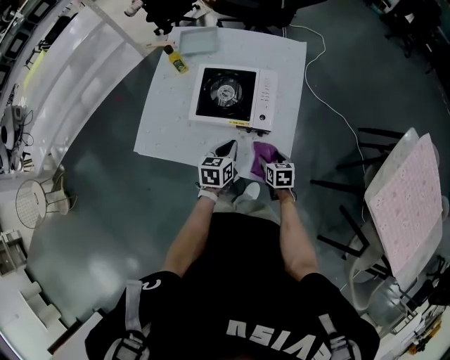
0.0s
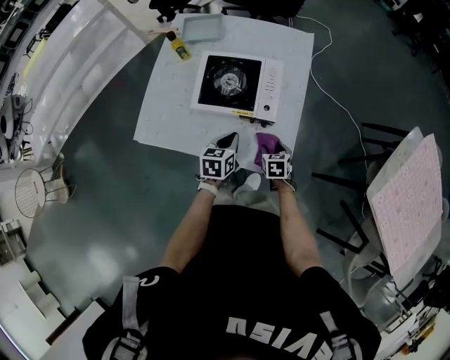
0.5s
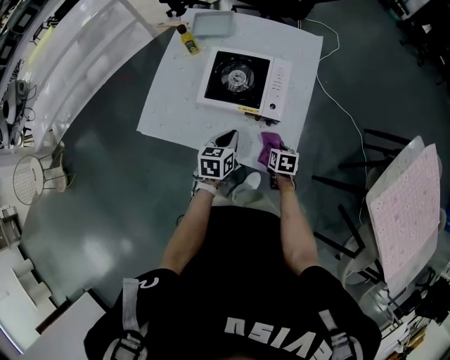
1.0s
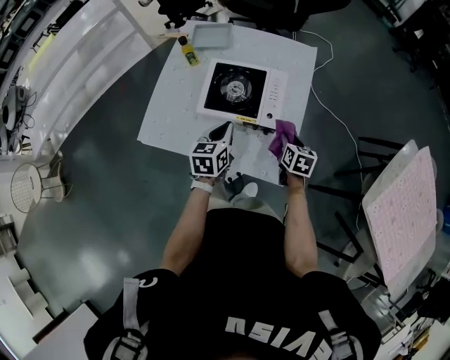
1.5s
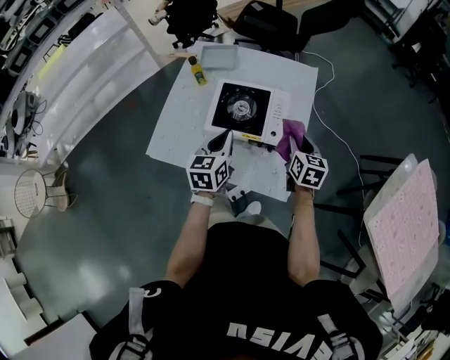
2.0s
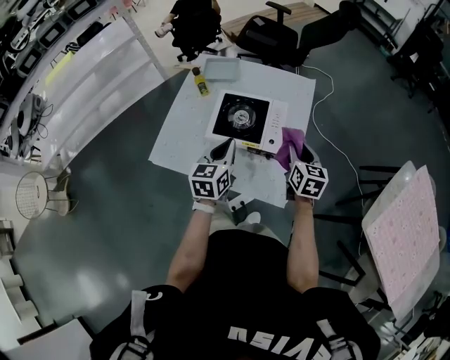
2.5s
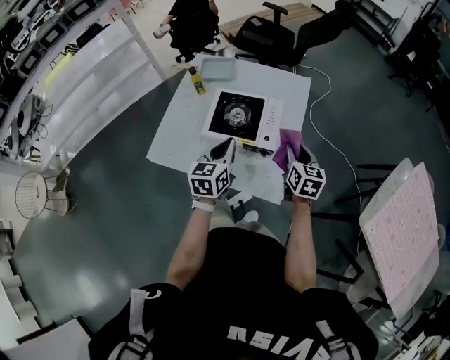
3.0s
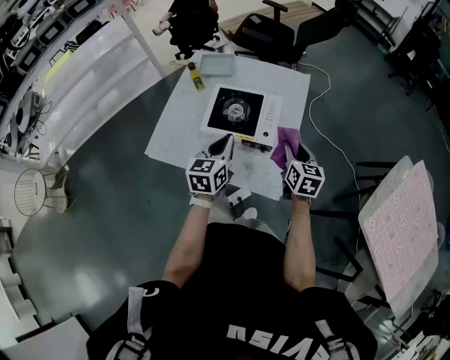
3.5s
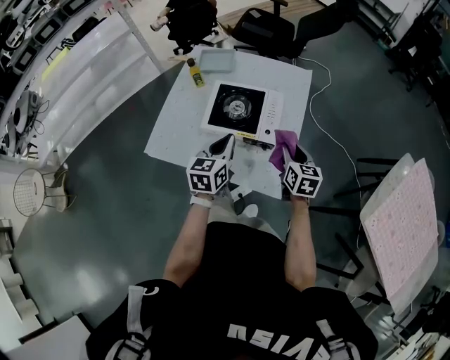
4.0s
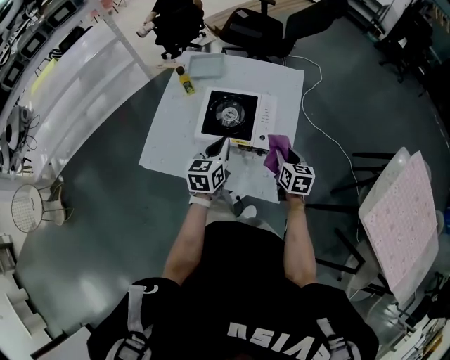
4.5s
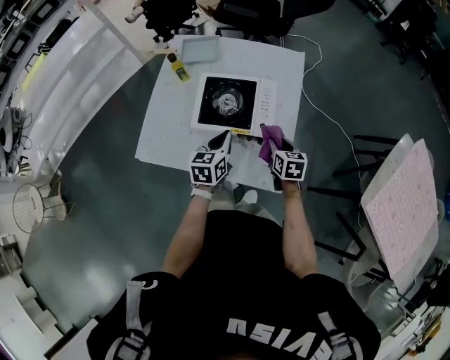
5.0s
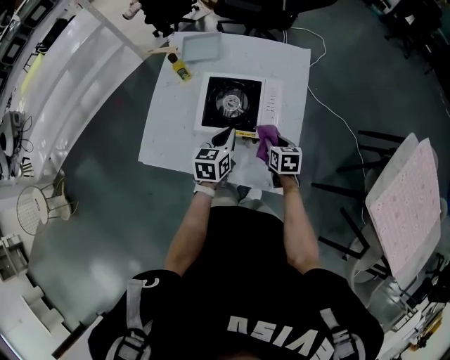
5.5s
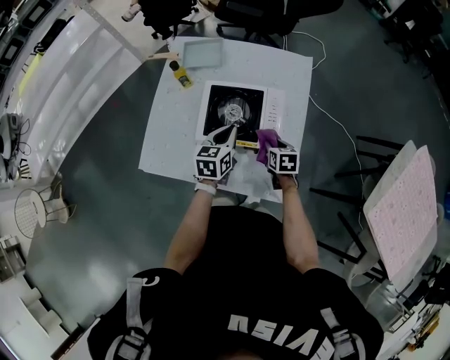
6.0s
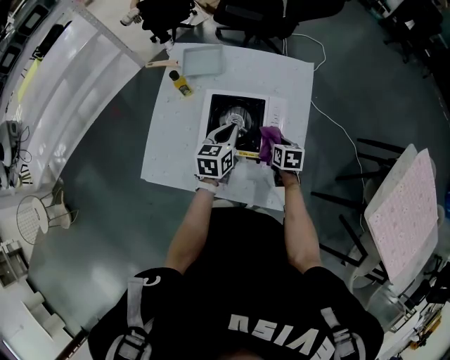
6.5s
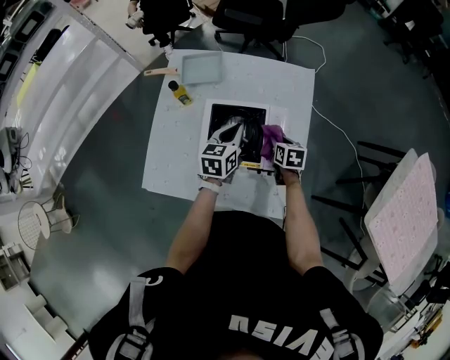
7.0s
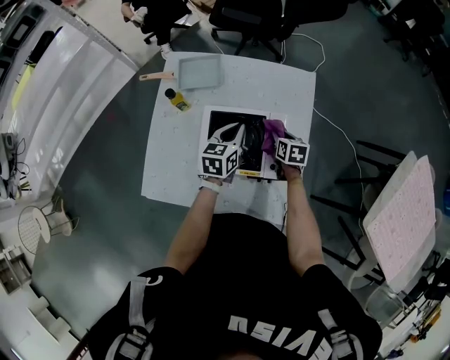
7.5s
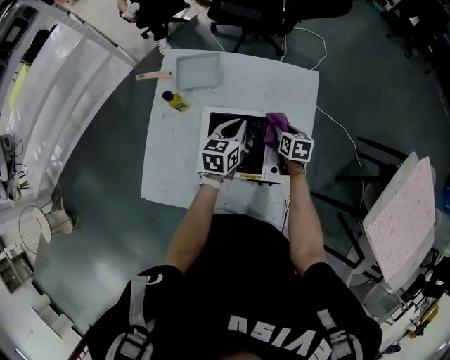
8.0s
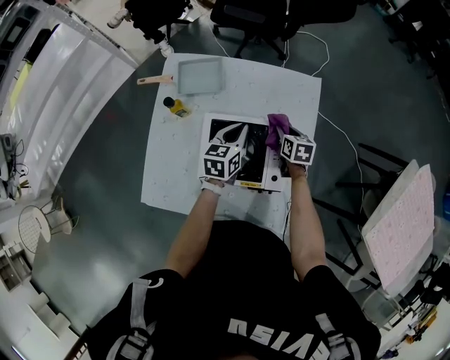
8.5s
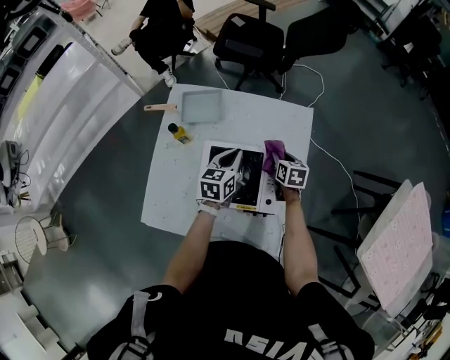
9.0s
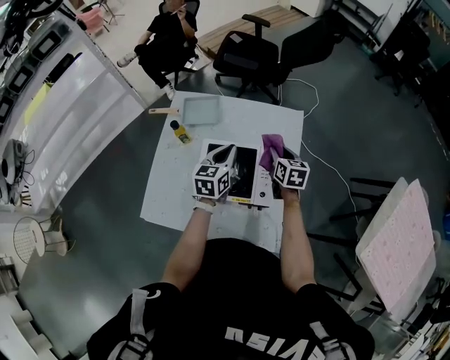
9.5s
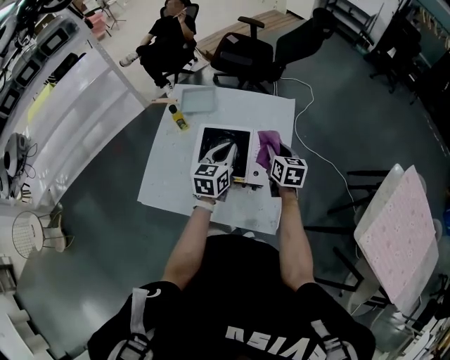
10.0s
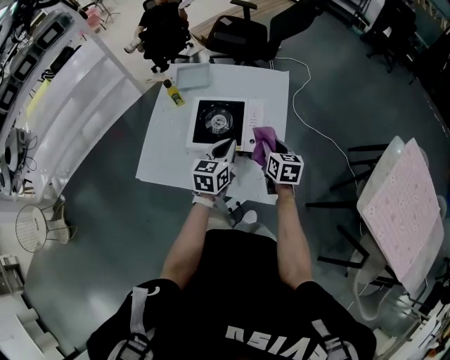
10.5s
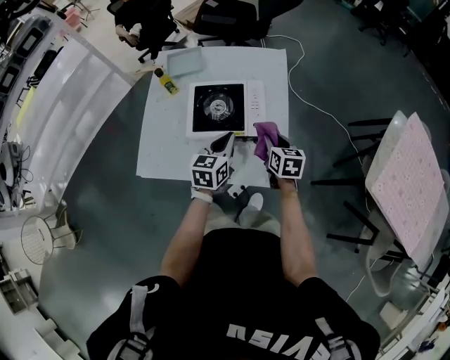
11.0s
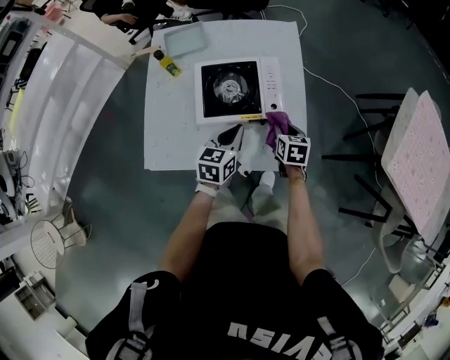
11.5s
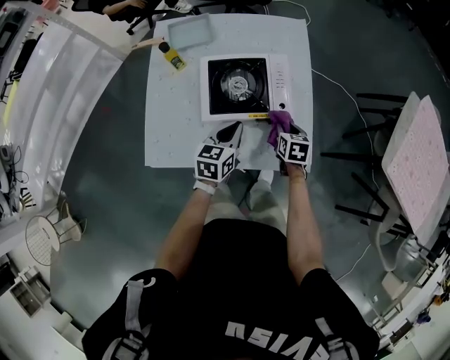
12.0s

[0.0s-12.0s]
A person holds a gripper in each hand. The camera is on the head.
0.0s to 2.0s: The right gripper goes some 25 cm upward and forward, changes its angle by some 20 degrees, and closes its fingers. Meanwhile the left gripper moves upward and to the left, about 15 cm.
2.0s to 4.0s: The grippers make only small movements.
4.0s to 6.0s: The left gripper moves forward and downward, roughly 15 cm. Meanwhile the right gripper moves downward, forward and to the left, approximately 20 cm, and swivels approximately 20 degrees.
6.0s to 8.0s: The two grippers go roughly 15 cm forward.
8.0s to 10.0s: The right gripper shifts roughly 20 cm upward and backward, and changes its angle by about 20 degrees. The left gripper heads backward and upward, covering some 15 cm.
10.0s to 12.0s: The two grippers go some 20 cm downward and backward. The right gripper changes its angle by approximately 30 degrees.

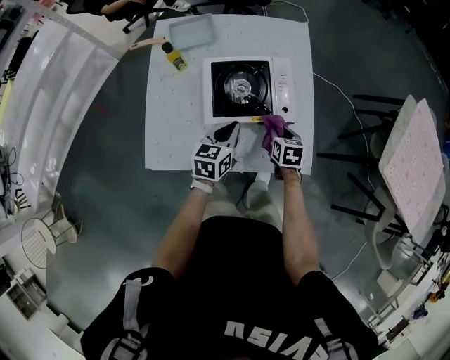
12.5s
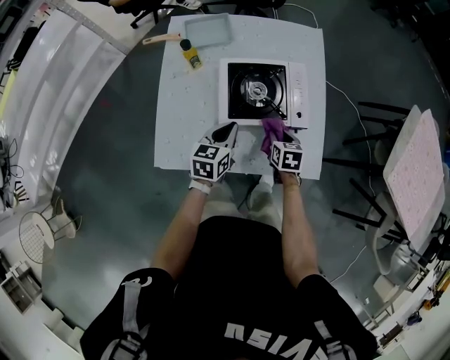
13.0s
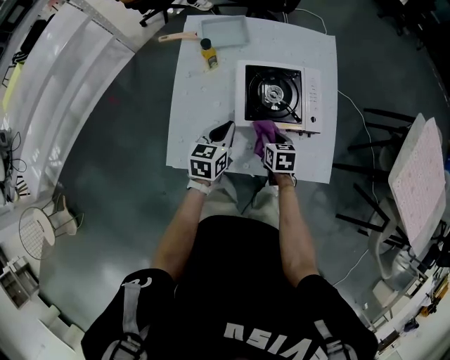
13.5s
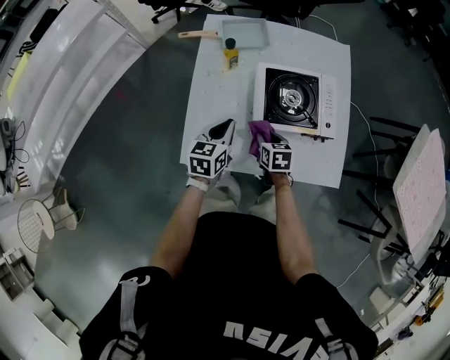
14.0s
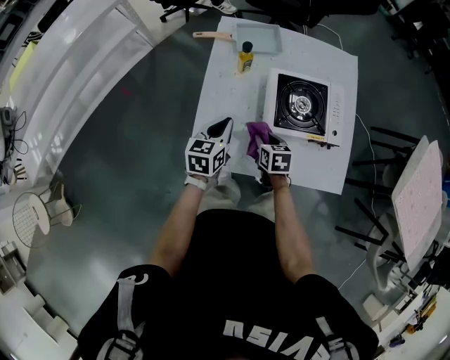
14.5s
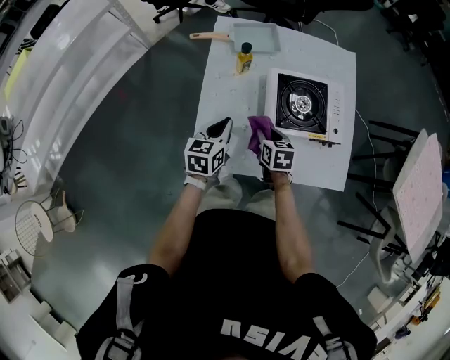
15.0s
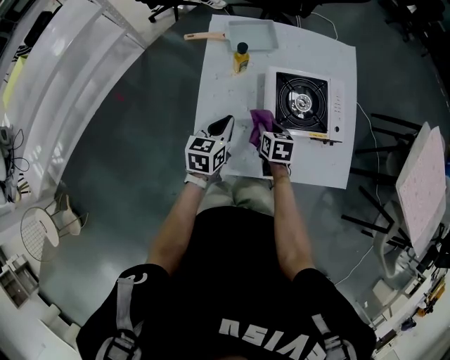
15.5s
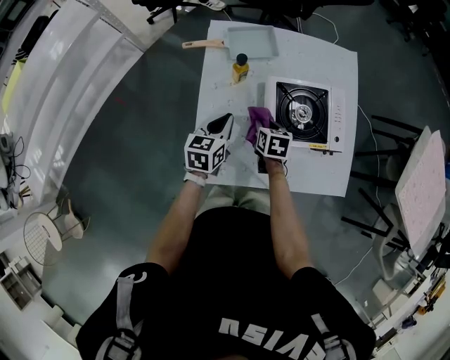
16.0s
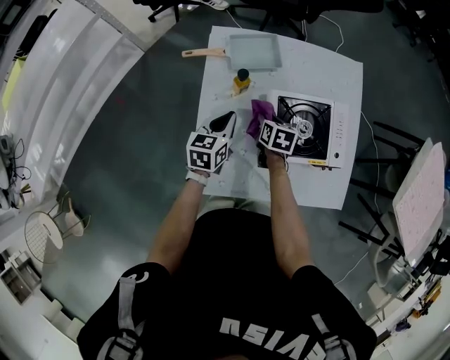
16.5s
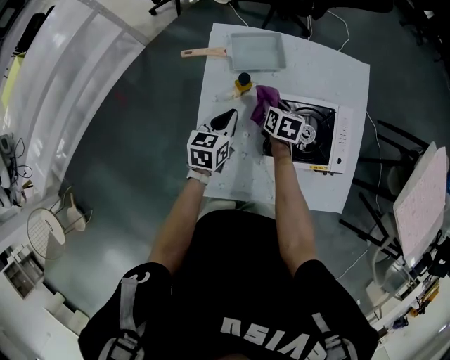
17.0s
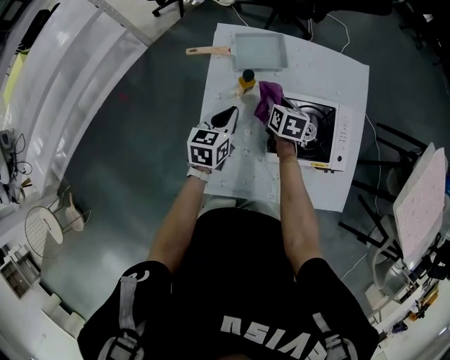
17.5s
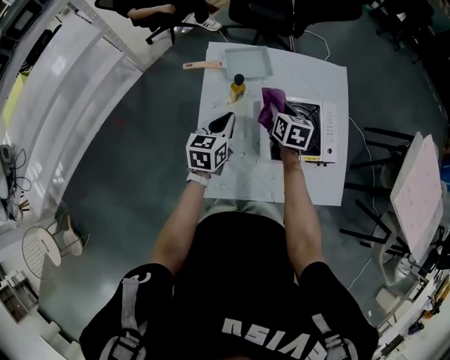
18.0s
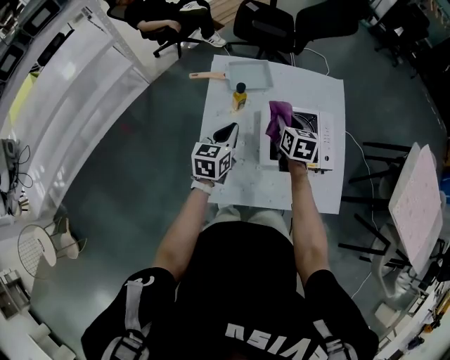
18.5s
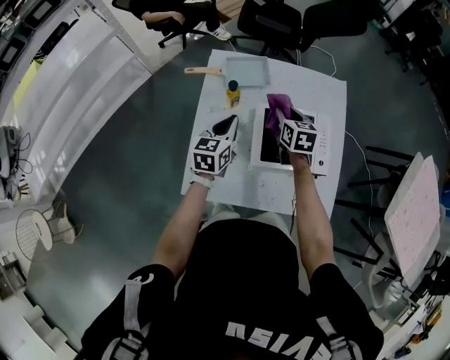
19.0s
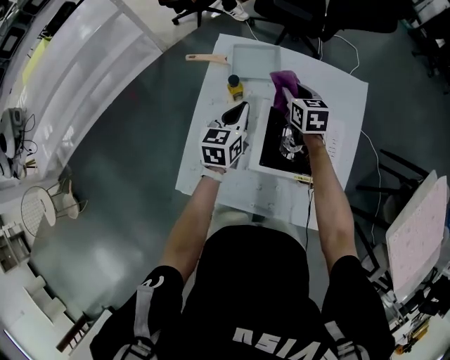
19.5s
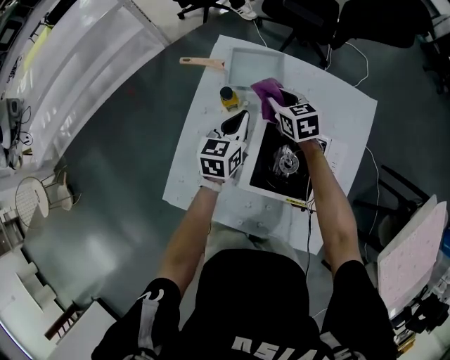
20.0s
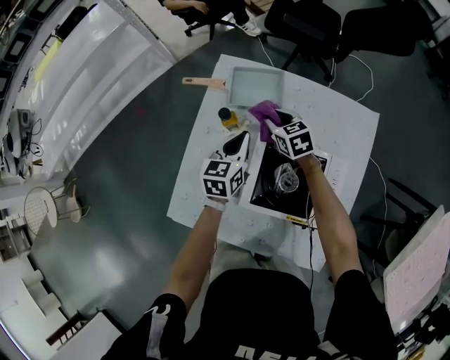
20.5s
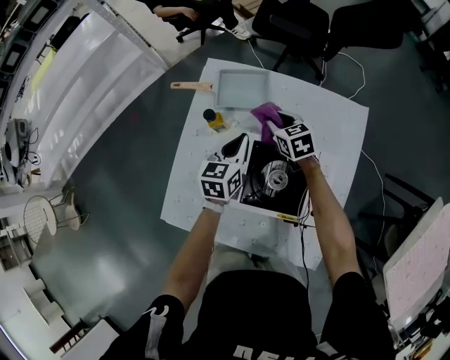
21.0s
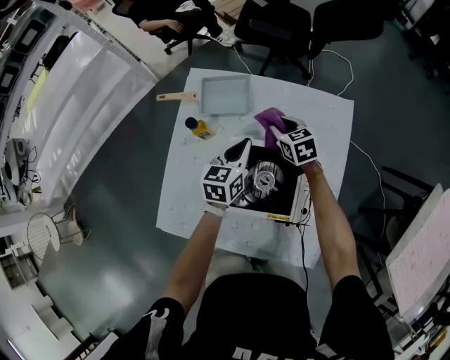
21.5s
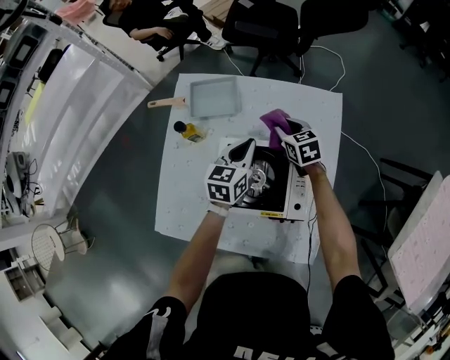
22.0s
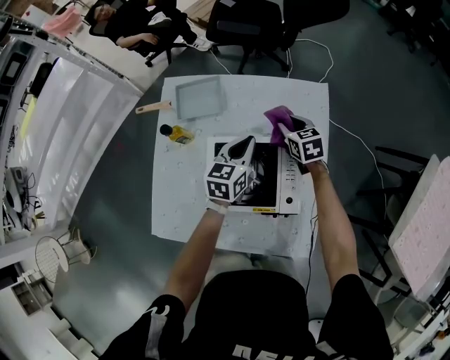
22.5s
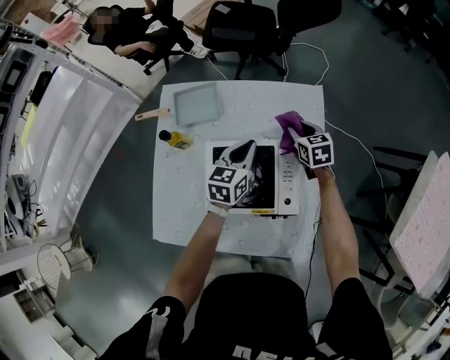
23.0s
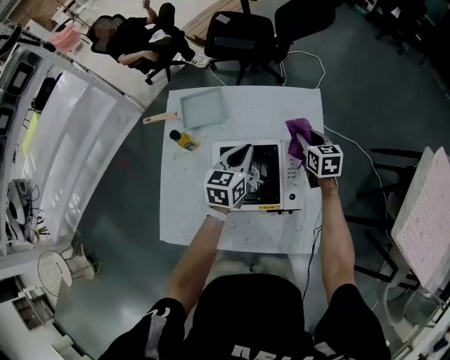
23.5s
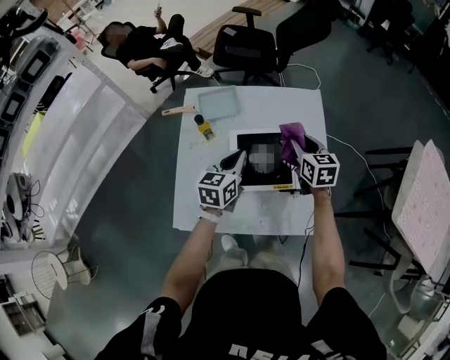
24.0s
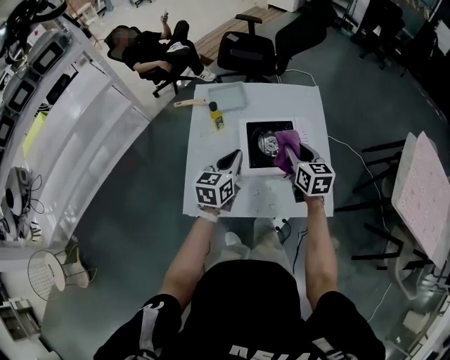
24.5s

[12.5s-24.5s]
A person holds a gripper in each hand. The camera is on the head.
12.5s to 14.5s: Both grippers travel together to the left, about 25 cm.
14.5s to 16.5s: Both grippers move forward, roughly 15 cm.
16.5s to 18.5s: The right gripper is displaced upward by some 15 cm, and swivels some 20 degrees. The left gripper heads upward, covering about 10 cm.
18.5s to 20.5s: The left gripper moves some 20 cm. The right gripper changes place by some 20 cm, and rotates roughly 40 degrees.
20.5s to 22.5s: Both grippers travel together to the right, approximately 20 cm. The right gripper changes its angle by some 20 degrees.
22.5s to 24.5s: The left gripper goes approximately 30 cm backward, to the left and upward, while the right gripper goes approximately 35 cm backward and upward, and rotates roughly 20 degrees.

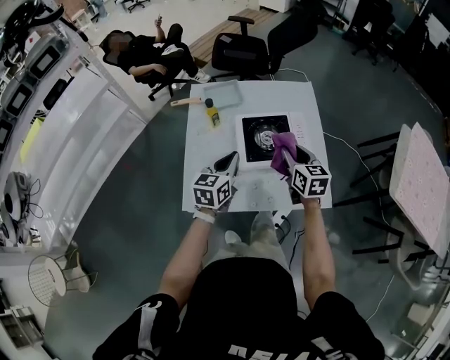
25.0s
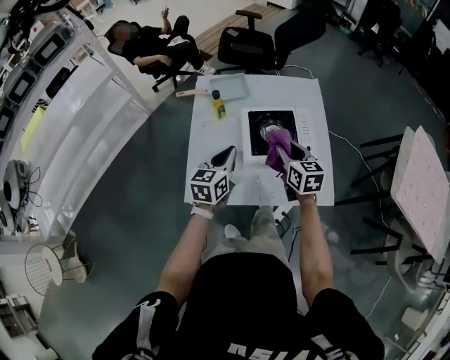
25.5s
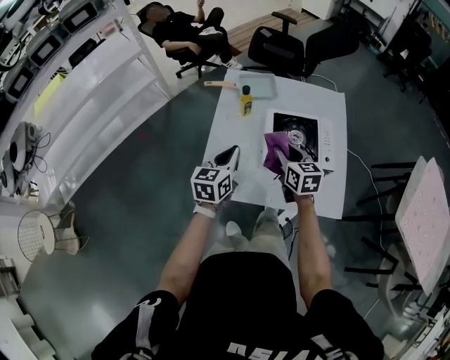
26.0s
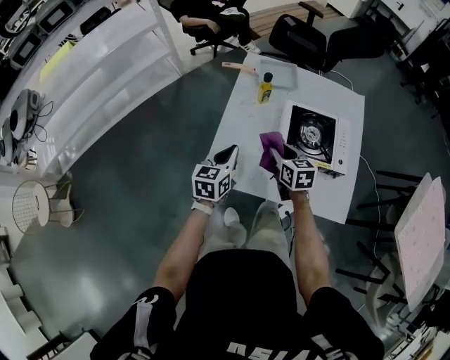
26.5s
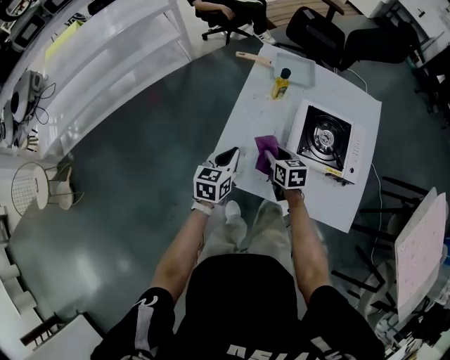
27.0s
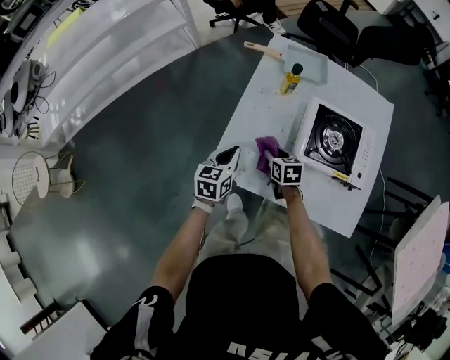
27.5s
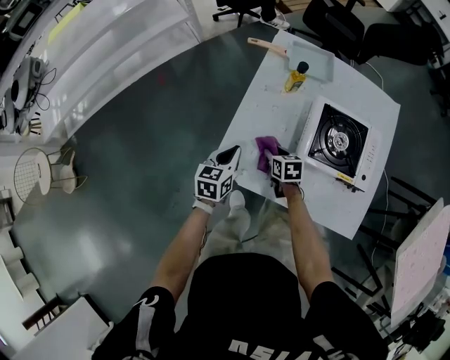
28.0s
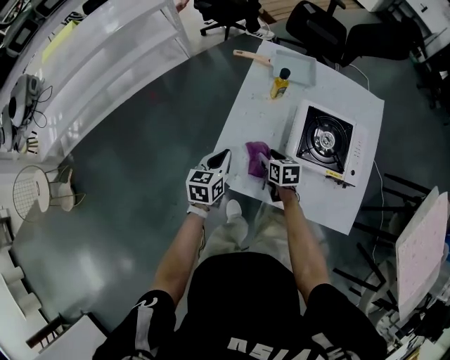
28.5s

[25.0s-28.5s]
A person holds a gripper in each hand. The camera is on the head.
25.0s to 27.0s: Both grippers move to the left and downward, about 25 cm. The right gripper changes its angle by roughly 30 degrees, while the left gripper rotates about 20 degrees.
27.0s to 28.5s: The right gripper travels downward by about 5 cm.
